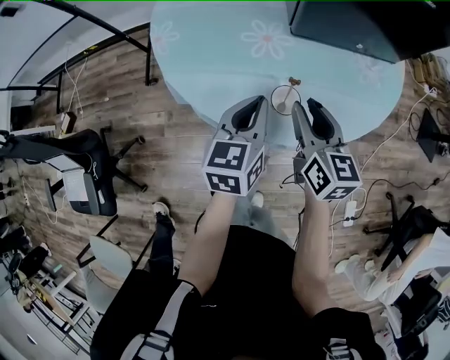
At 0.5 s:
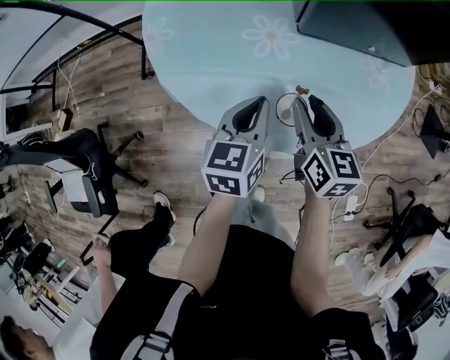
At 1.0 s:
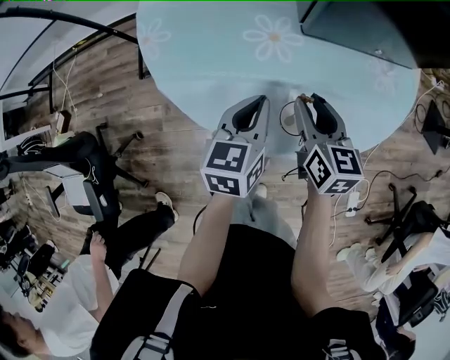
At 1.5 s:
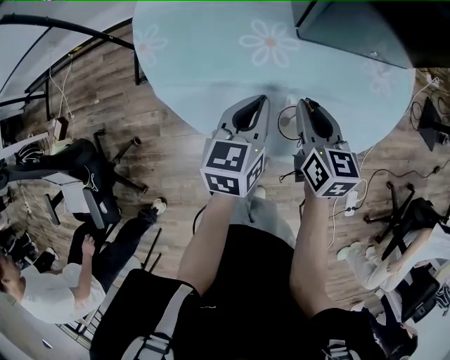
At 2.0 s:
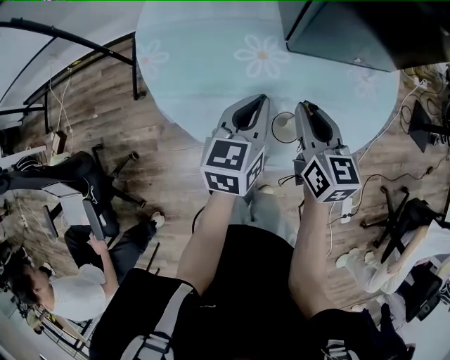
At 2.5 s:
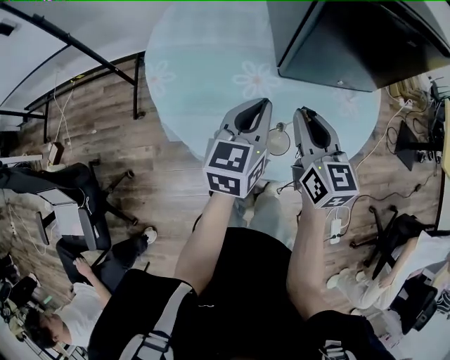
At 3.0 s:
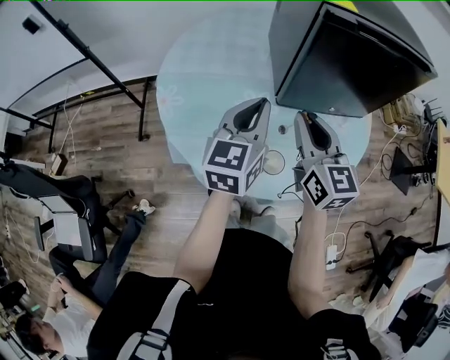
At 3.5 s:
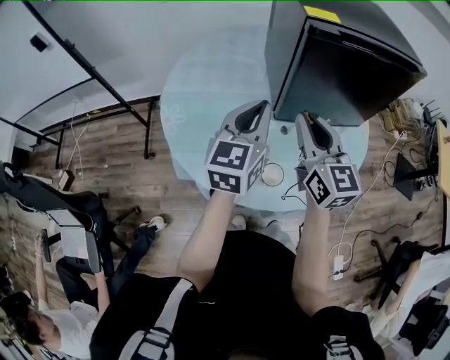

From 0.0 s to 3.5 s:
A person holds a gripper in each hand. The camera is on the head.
From 0.0 s to 2.0 s: The grippers both shift forward by roughly 5 cm. The right gripper closes up.
From 2.0 s to 3.5 s: Both grippers travel together upward, approximately 20 cm. The right gripper changes its angle by roughly 20 degrees. The left gripper turns by some 20 degrees.

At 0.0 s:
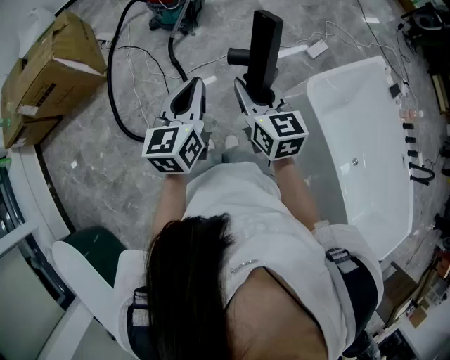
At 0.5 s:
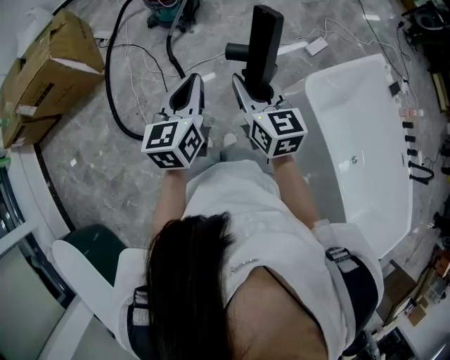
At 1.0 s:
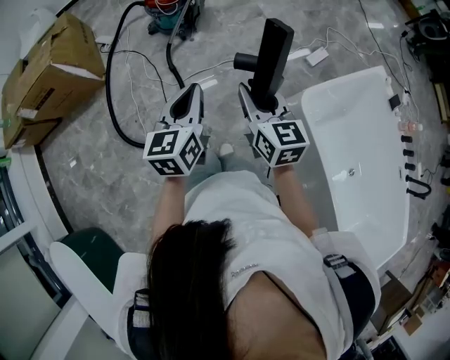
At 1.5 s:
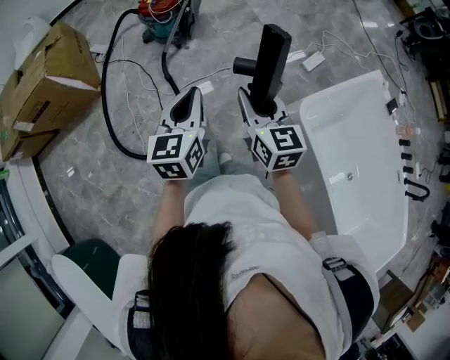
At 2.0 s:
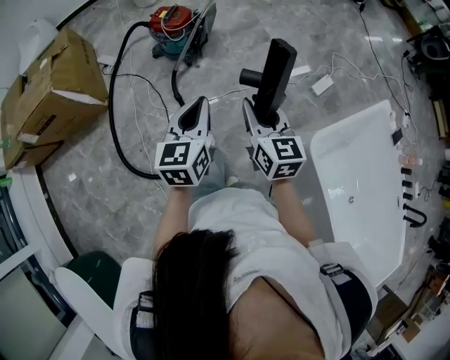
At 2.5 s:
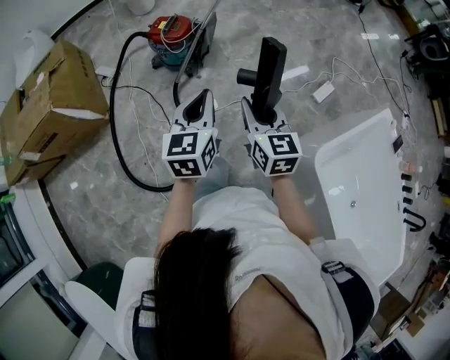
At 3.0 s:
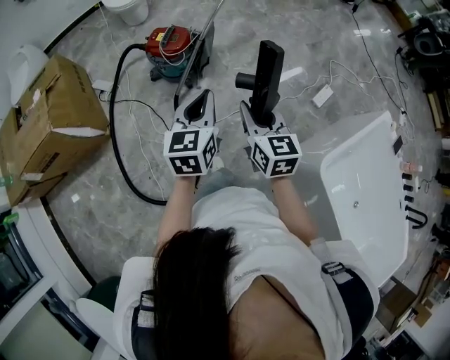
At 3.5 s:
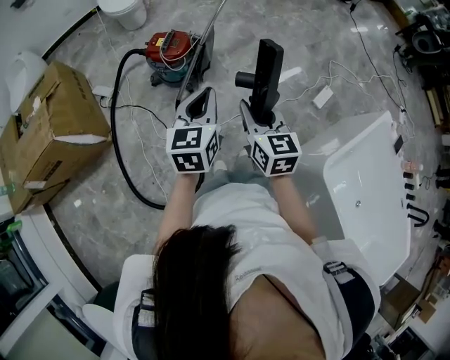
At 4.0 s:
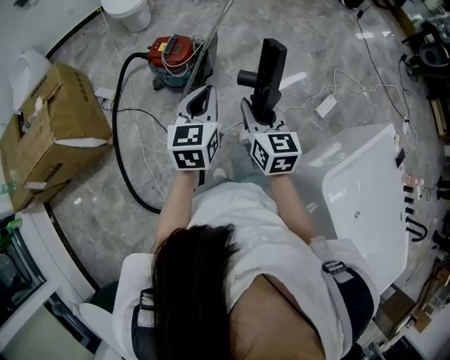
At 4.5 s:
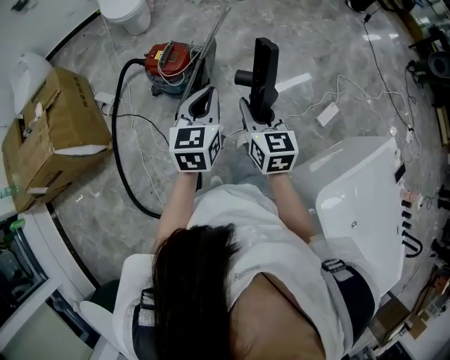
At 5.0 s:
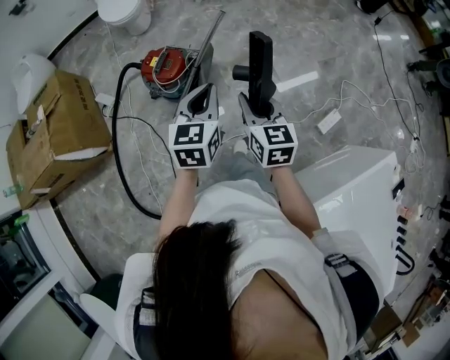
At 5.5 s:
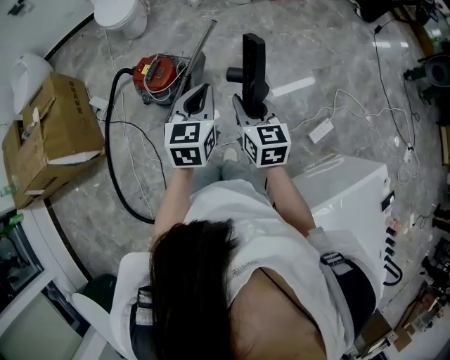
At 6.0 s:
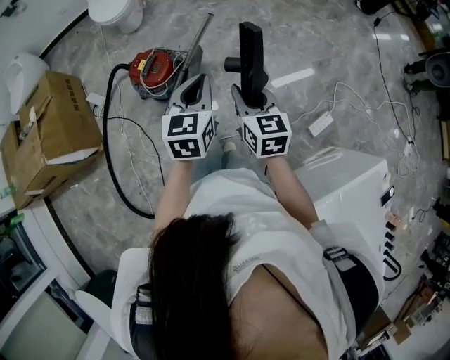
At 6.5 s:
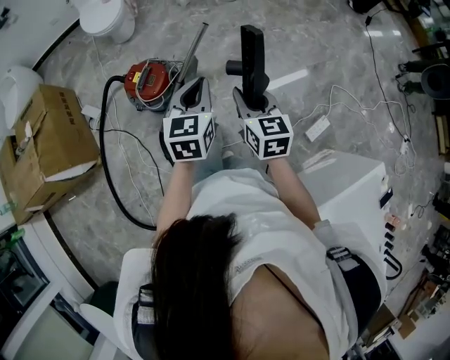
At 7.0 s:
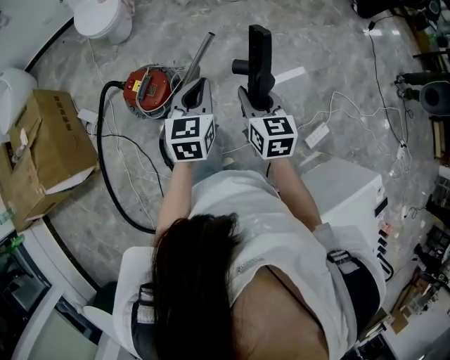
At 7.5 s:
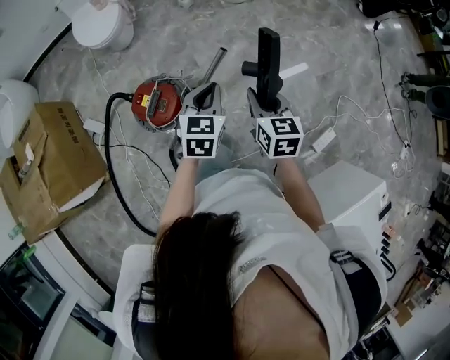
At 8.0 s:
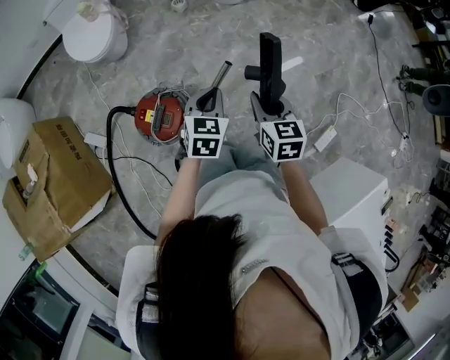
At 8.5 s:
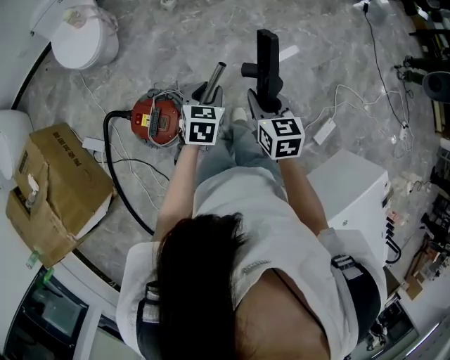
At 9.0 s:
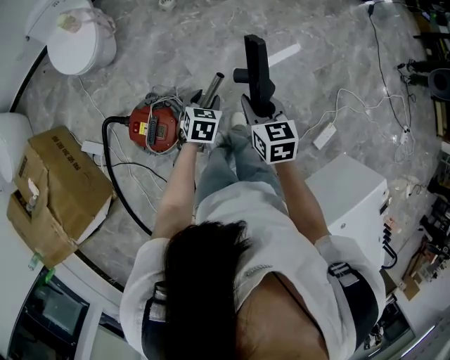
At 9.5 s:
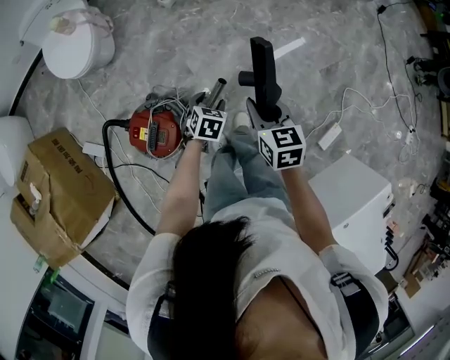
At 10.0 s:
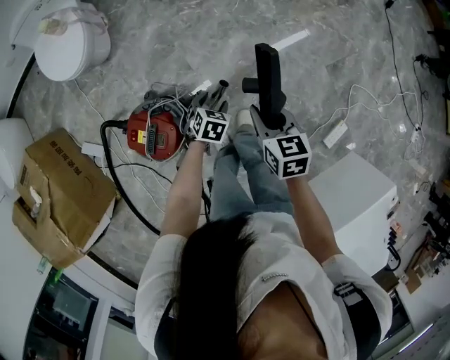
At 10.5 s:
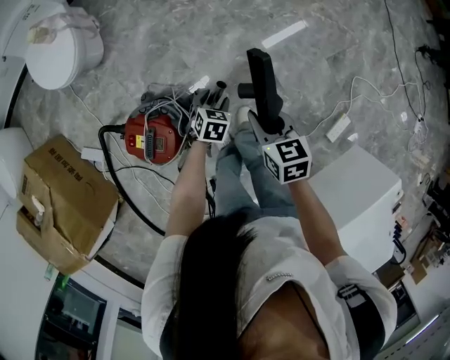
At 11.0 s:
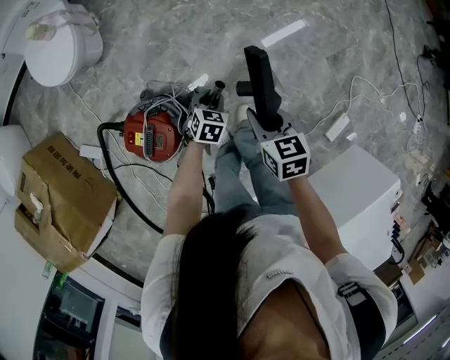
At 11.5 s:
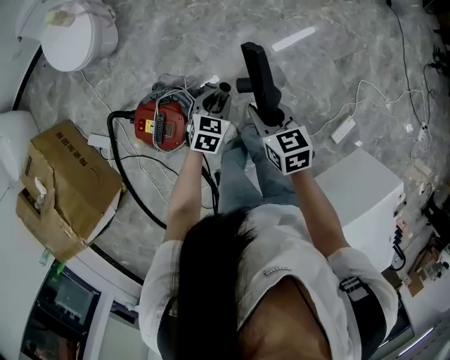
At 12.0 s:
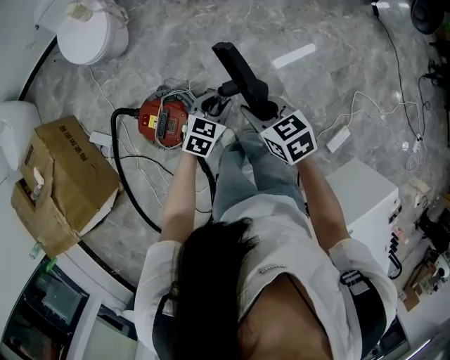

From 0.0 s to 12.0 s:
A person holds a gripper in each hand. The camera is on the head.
From 0.0 s to 2.0 s: Both grippers move forward, some 20 cm.
From 2.0 s to 4.0 s: Both grippers travel together forward, approximately 25 cm.
From 4.0 s to 6.0 s: Both grippers move forward and to the right, roughly 25 cm.
From 6.0 s to 8.0 s: The right gripper is displaced forward by some 30 cm; the left gripper moves forward and downward, about 30 cm, and turns by approximately 20 degrees.
From 8.0 s to 10.0 s: The left gripper travels downward by roughly 25 cm, changes its angle by approximately 30 degrees, and opens its fingers, while the right gripper moves downward and forward, some 15 cm.
From 10.0 s to 12.0 s: The right gripper heads to the left, upward and backward, covering about 10 cm, and turns by about 20 degrees, while the left gripper travels upward by roughly 15 cm, swivels approximately 20 degrees, and closes.

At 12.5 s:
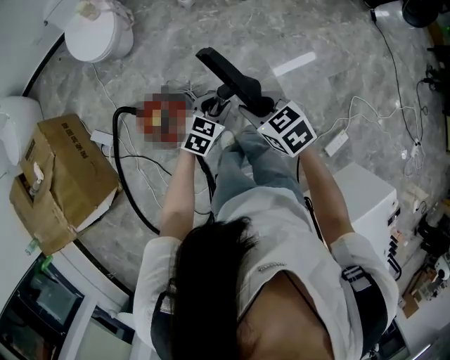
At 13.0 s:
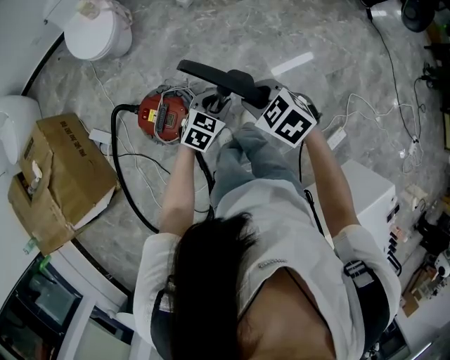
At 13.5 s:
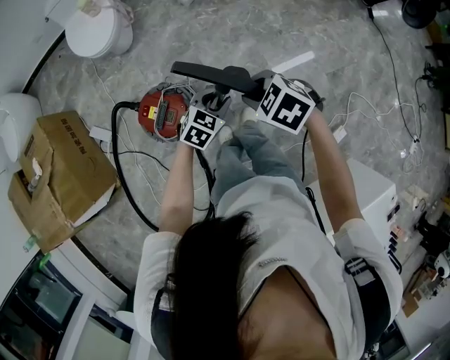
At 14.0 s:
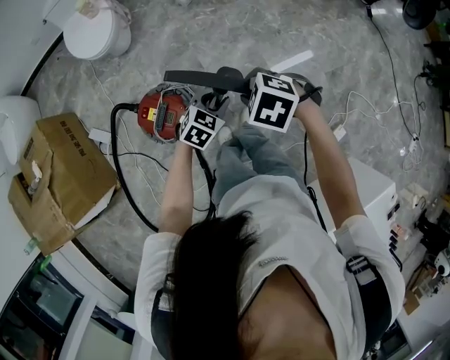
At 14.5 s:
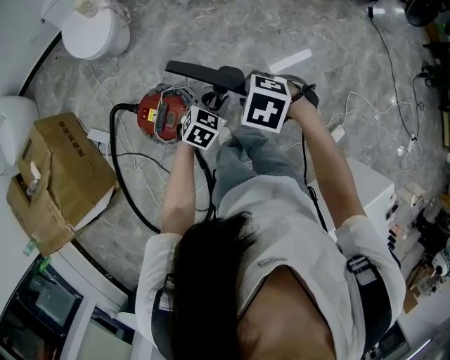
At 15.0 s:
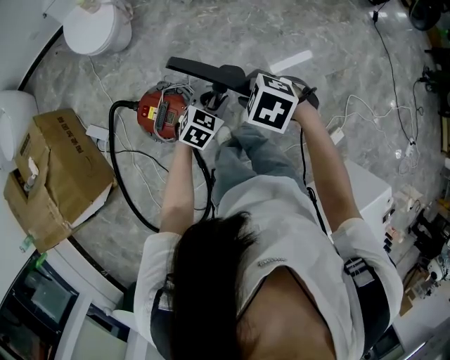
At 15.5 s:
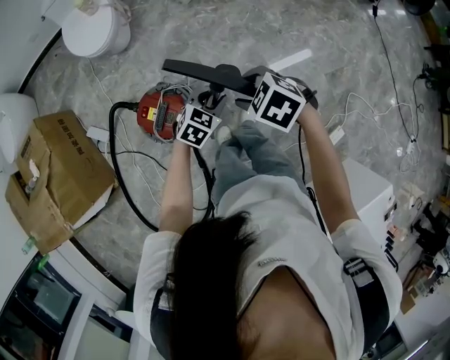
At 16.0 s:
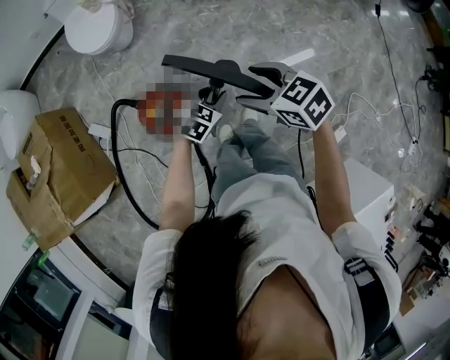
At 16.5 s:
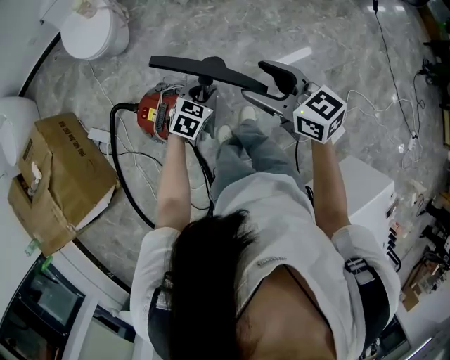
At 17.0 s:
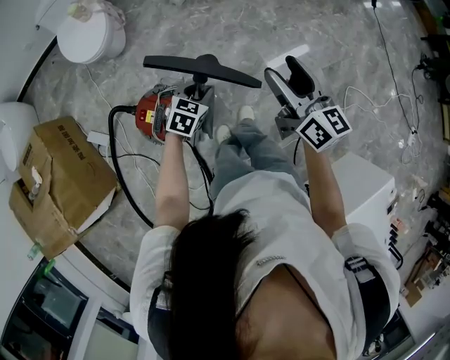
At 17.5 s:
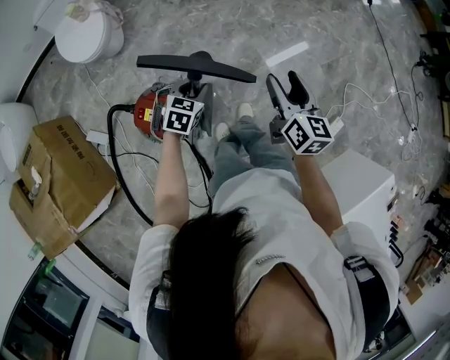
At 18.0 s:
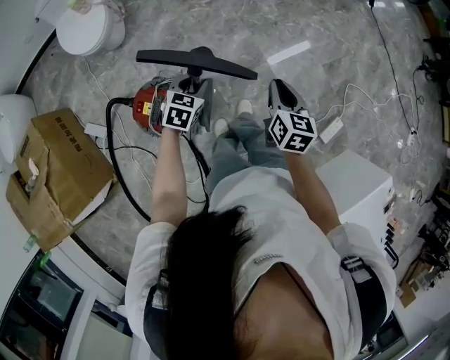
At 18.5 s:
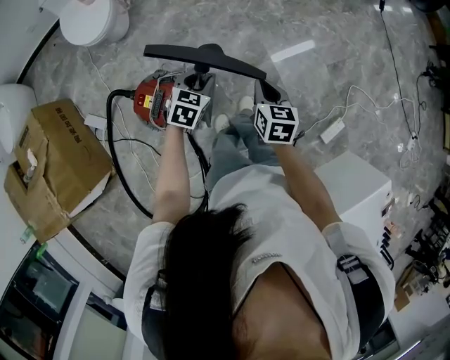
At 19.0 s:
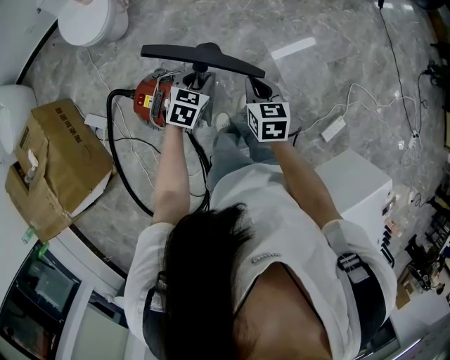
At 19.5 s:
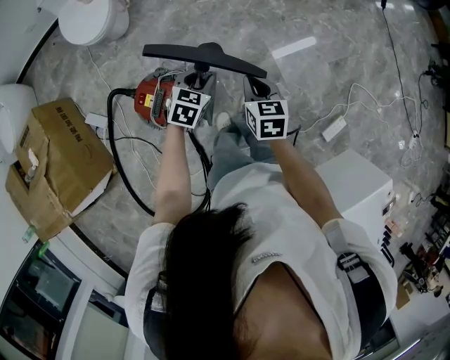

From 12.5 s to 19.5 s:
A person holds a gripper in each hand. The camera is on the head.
From 12.5 s to 14.5 s: The right gripper swivels about 40 degrees.
From 14.5 s to 16.0 s: The right gripper changes place by some 5 cm, points its fingers roughly 30 degrees further upward, and opens its fingers.
From 16.0 s to 17.5 s: The right gripper moves about 15 cm, and changes its angle by roughly 70 degrees.
From 17.5 s to 19.5 s: The right gripper goes approximately 15 cm downward and to the left, swivels some 30 degrees, and closes.

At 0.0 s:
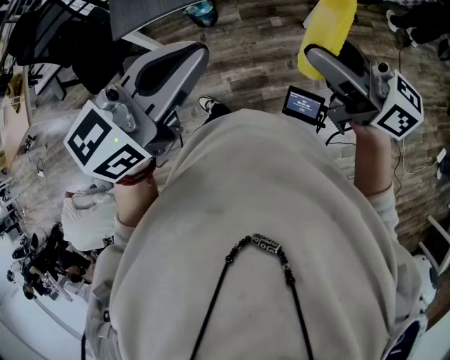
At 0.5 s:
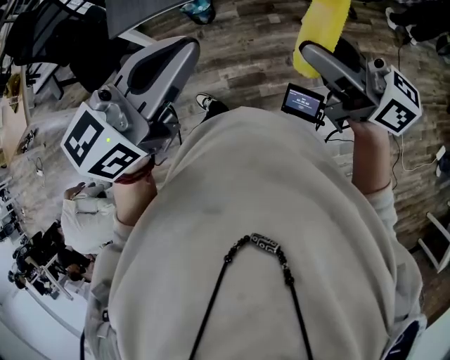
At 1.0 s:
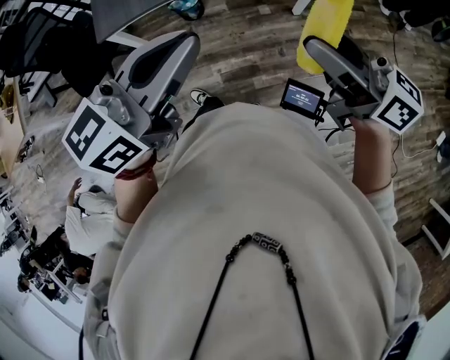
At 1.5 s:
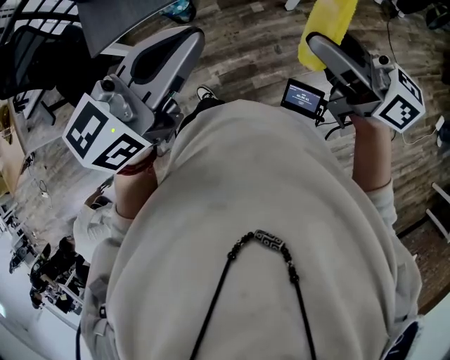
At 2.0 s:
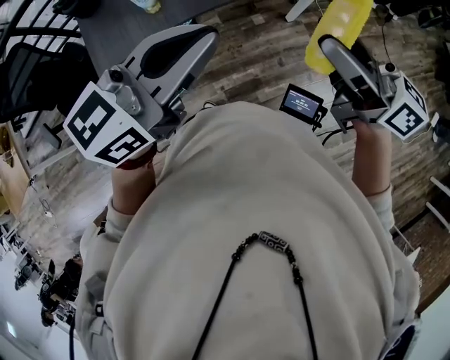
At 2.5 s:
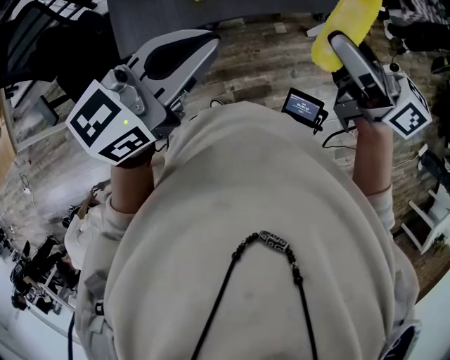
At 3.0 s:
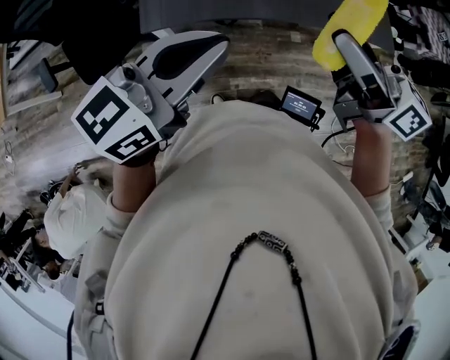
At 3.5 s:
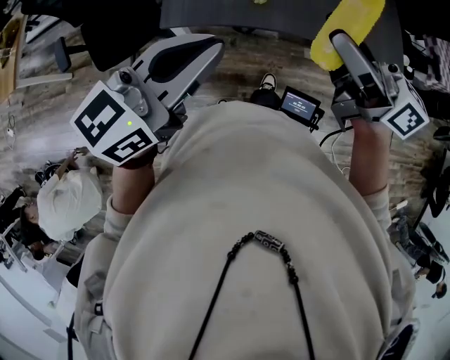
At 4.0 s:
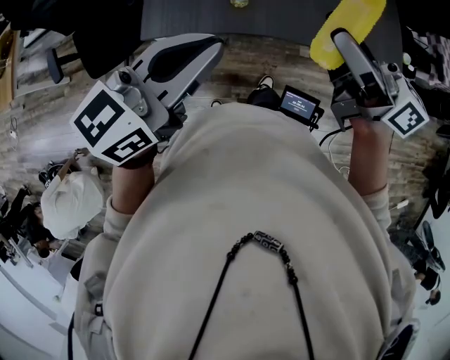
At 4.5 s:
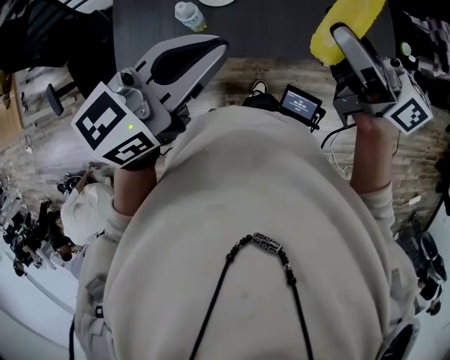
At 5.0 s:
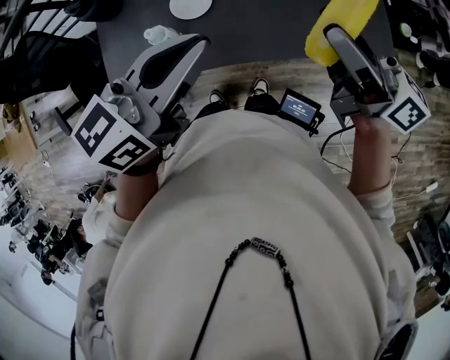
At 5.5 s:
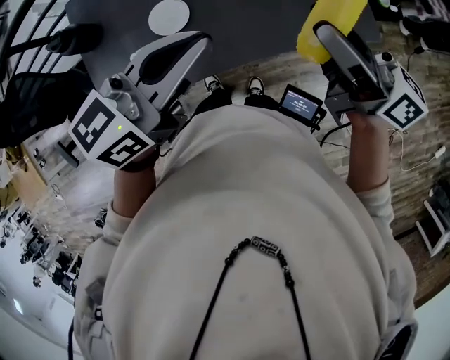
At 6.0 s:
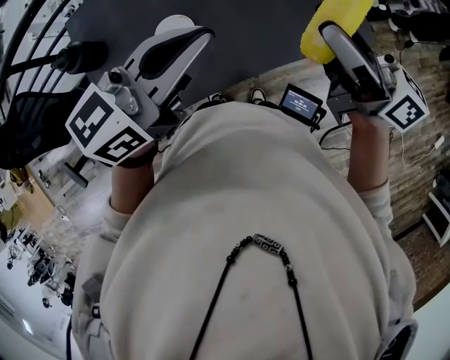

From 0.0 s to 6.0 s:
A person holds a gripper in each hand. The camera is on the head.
From 0.0 s to 2.0 s: The left gripper shifts about 5 cm forward.
From 2.0 s to 4.0 s: The right gripper moves to the left and upward, approximately 10 cm, and turns by approximately 20 degrees. Meanwhile the left gripper heads backward and to the left, covering some 10 cm, and rotates approximately 20 degrees.
From 4.0 s to 6.0 s: The left gripper moves forward, to the right and downward, roughly 10 cm, and rotates approximately 20 degrees. Meanwhile the right gripper moves to the right and downward, some 10 cm, and swivels roughly 20 degrees.
